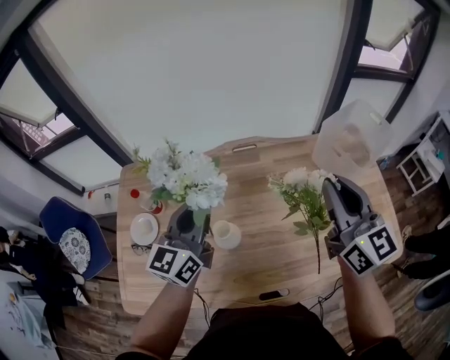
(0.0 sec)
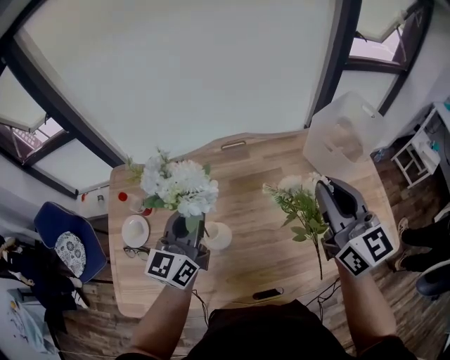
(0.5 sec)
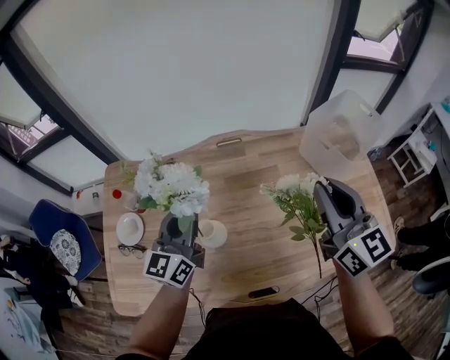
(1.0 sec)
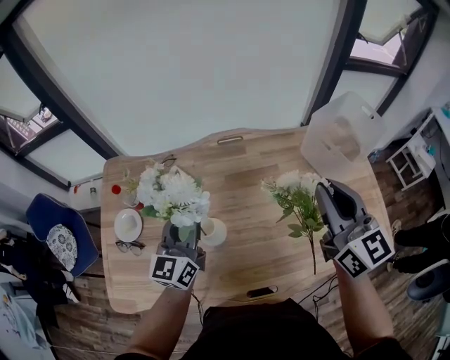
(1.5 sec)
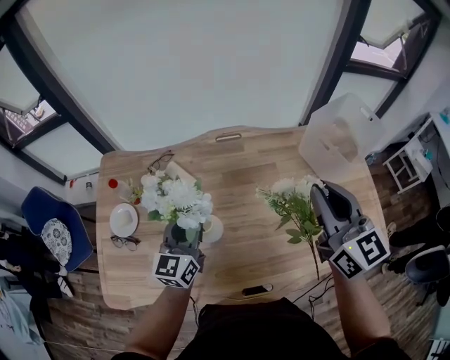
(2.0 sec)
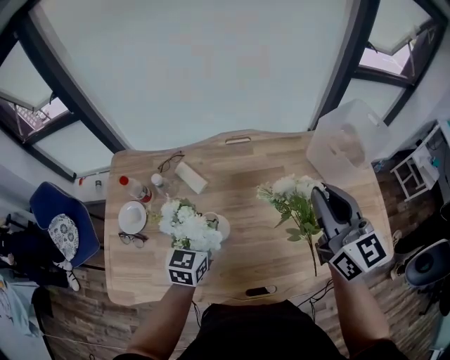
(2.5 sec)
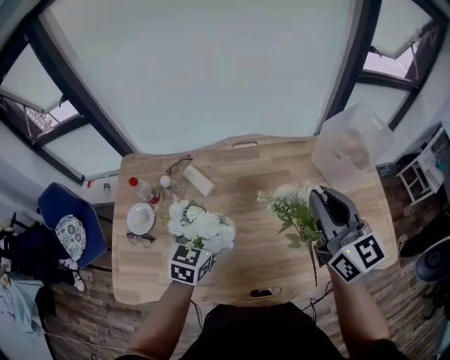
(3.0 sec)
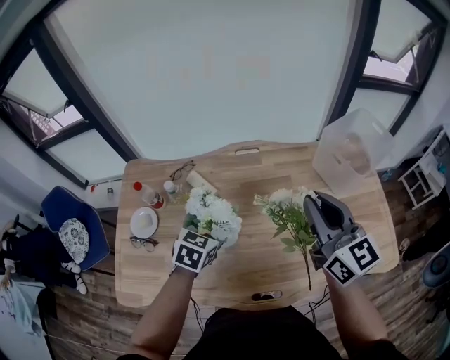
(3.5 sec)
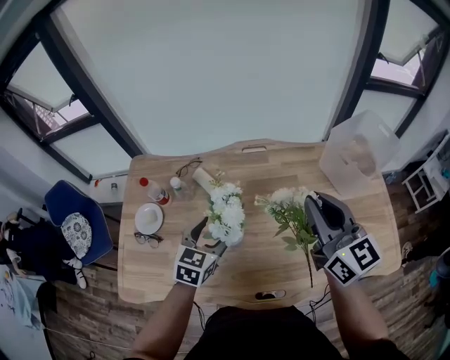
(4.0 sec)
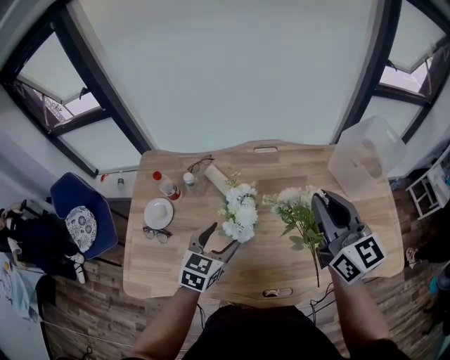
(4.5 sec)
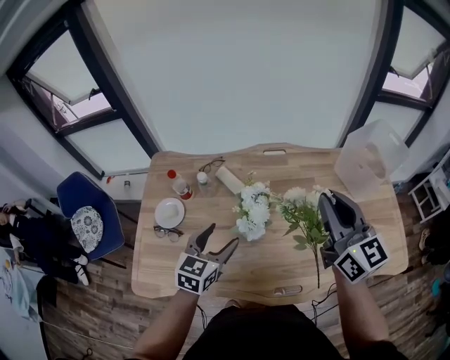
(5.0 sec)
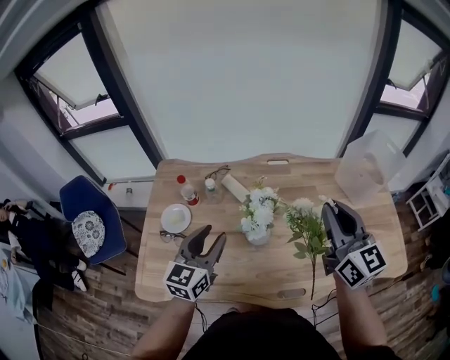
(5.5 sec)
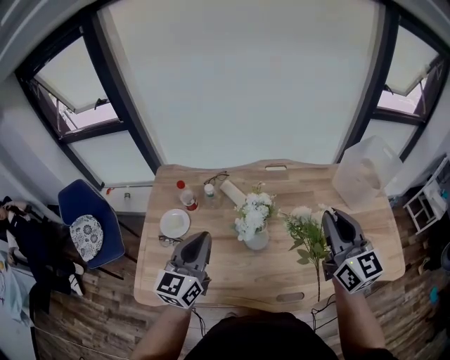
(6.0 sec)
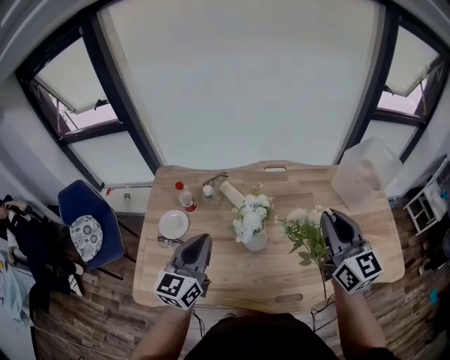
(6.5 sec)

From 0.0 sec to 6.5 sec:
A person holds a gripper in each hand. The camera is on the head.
From 0.0 sec to 2.0 sec: The left gripper goes approximately 10 cm downward.
From 2.0 sec to 4.5 sec: The right gripper goes about 5 cm to the left. Meanwhile the left gripper travels backward by roughly 5 cm, changes its angle by roughly 30 degrees, and opens.
From 4.5 sec to 6.5 sec: The right gripper shifts by roughly 5 cm. Meanwhile the left gripper shifts some 15 cm upward and to the left, changes its angle by about 30 degrees, and closes.

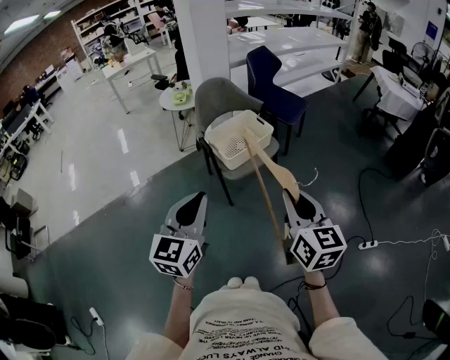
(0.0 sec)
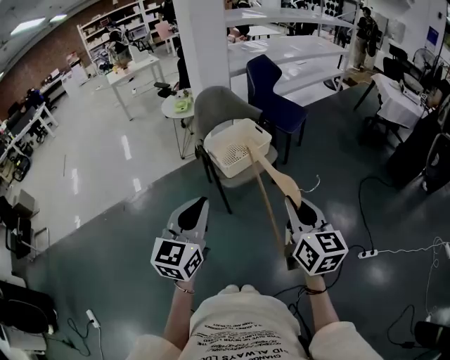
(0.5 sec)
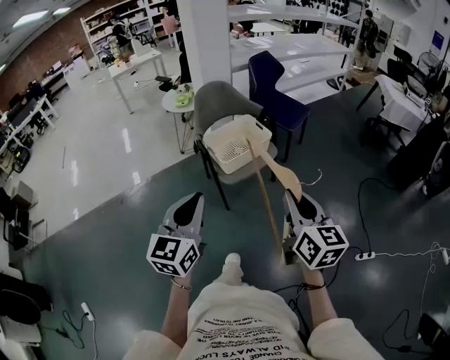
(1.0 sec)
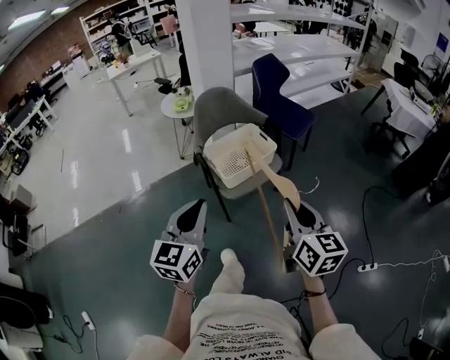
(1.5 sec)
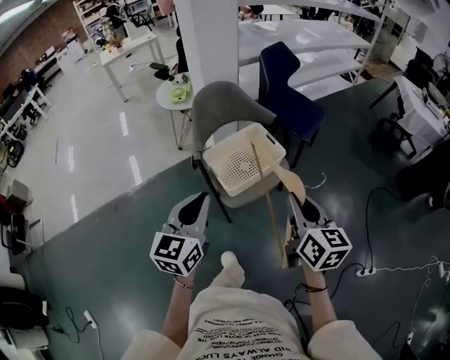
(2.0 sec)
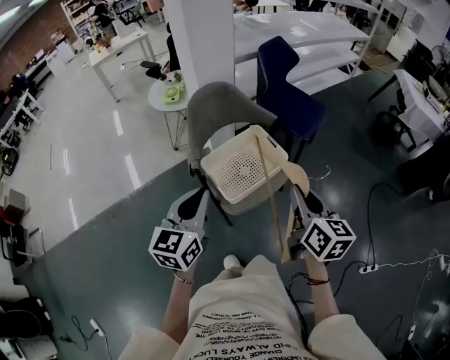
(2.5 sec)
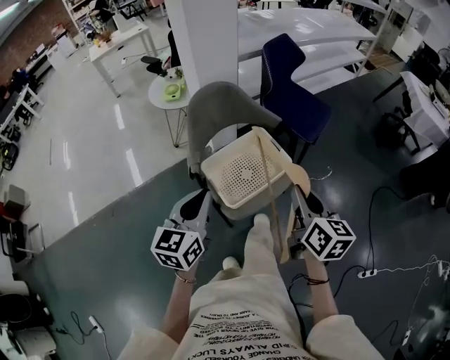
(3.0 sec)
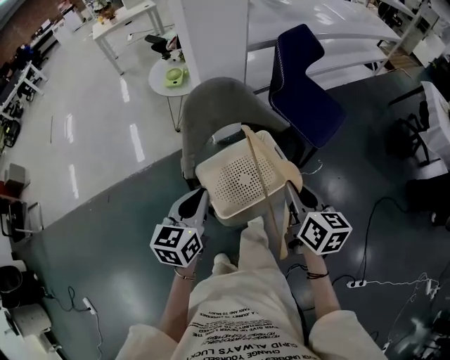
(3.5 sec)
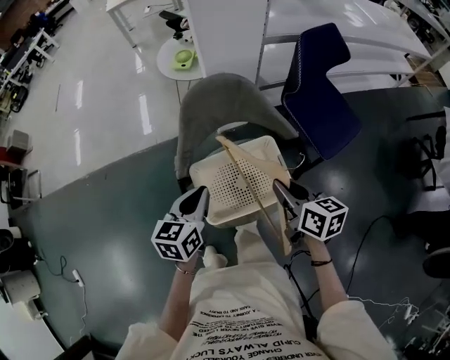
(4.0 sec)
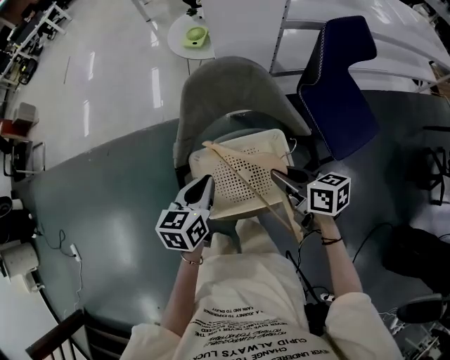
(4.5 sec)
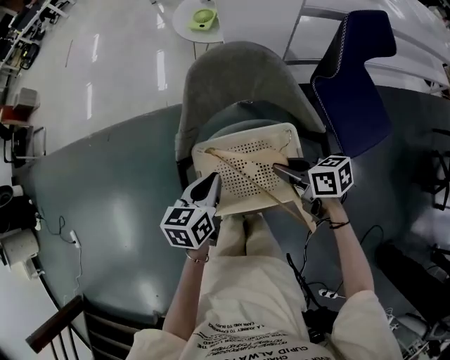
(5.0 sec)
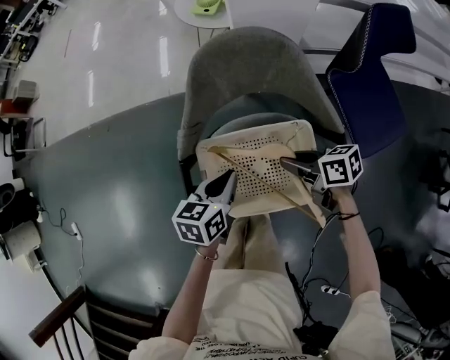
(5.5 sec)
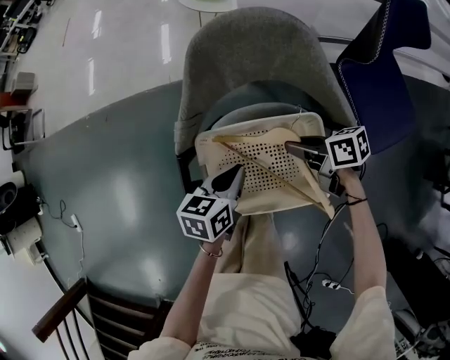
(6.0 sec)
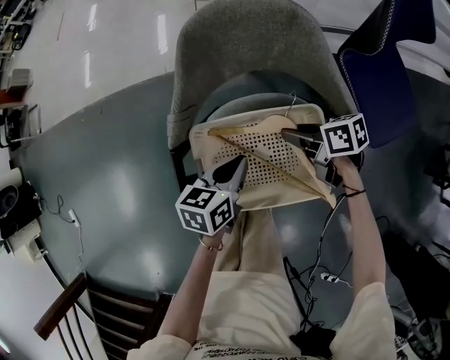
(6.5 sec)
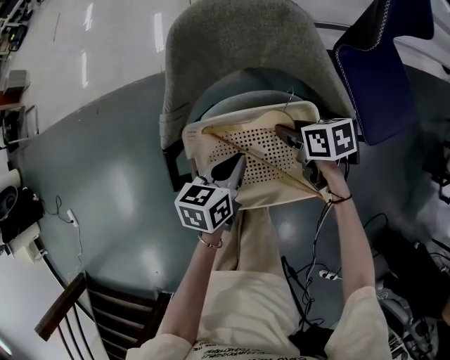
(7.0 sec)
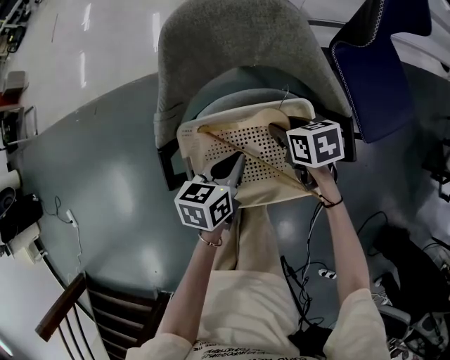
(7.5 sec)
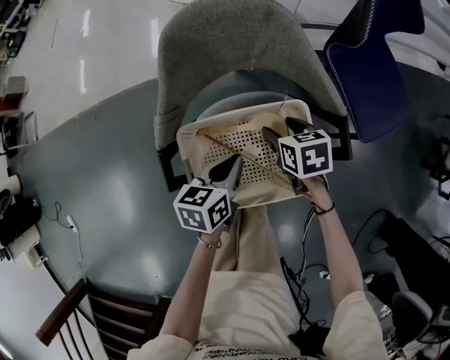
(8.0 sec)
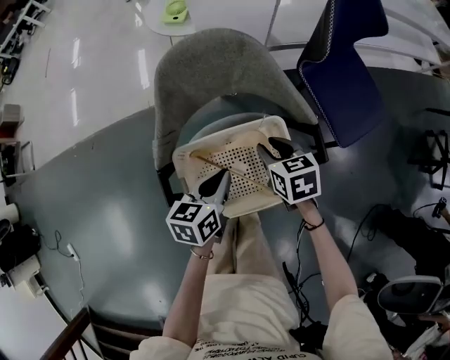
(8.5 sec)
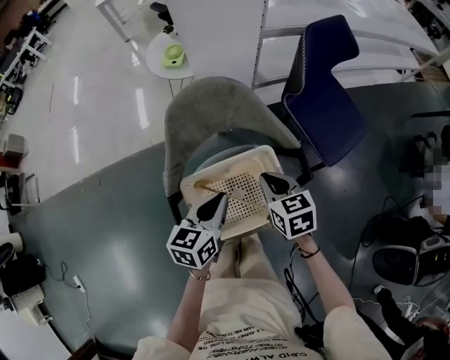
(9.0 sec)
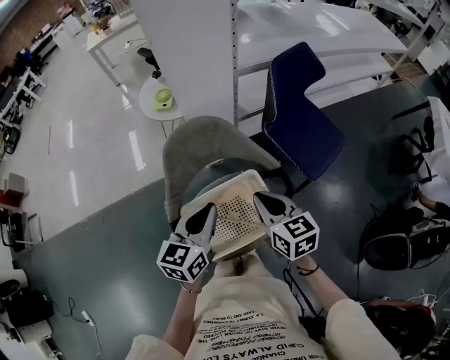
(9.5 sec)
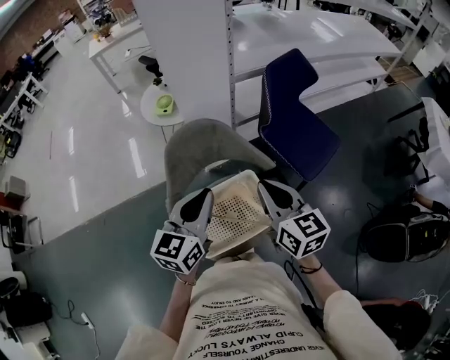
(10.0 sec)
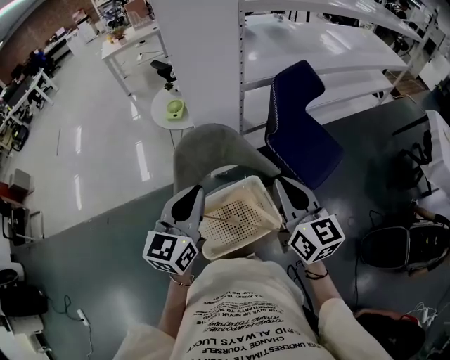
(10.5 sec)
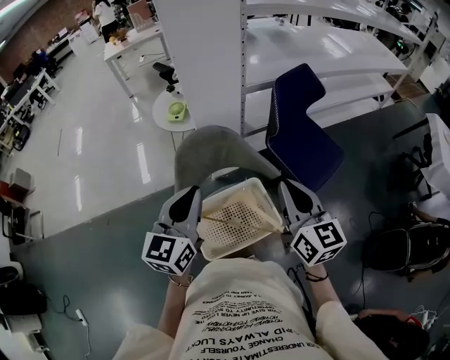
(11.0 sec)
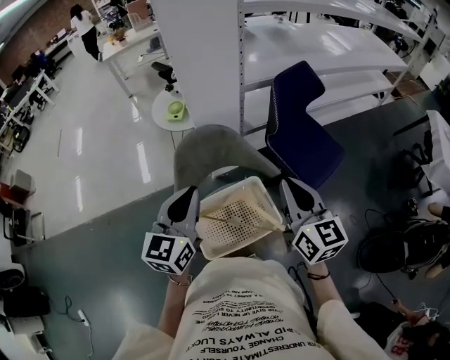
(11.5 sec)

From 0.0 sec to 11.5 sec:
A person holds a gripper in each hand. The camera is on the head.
From 0.0 sec to 2.0 sec: The two grippers go about 25 cm forward.
From 2.0 sec to 4.0 sec: The right gripper shifts by roughly 35 cm, and turns by roughly 40 degrees; the left gripper ends up some 30 cm from where it was, and changes its angle by approximately 30 degrees.
From 4.0 sec to 6.0 sec: The right gripper travels downward and forward by approximately 25 cm, and changes its angle by approximately 50 degrees; the left gripper shifts about 20 cm downward.
From 6.0 sec to 7.5 sec: The right gripper moves some 5 cm, rotates about 30 degrees, and opens.
From 7.5 sec to 9.5 sec: Both grippers travel together upward, some 25 cm. The right gripper rotates some 40 degrees, and closes its fingers. The left gripper swivels some 30 degrees.
From 9.5 sec to 11.5 sec: The left gripper moves upward, some 10 cm. The right gripper travels upward and to the right by approximately 15 cm, and rotates approximately 20 degrees.

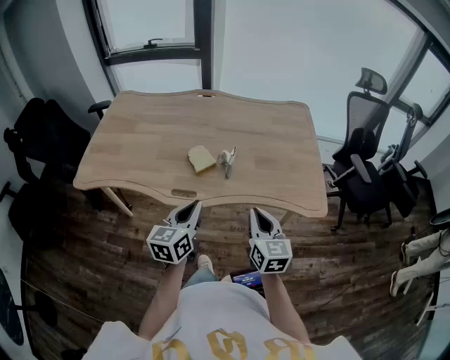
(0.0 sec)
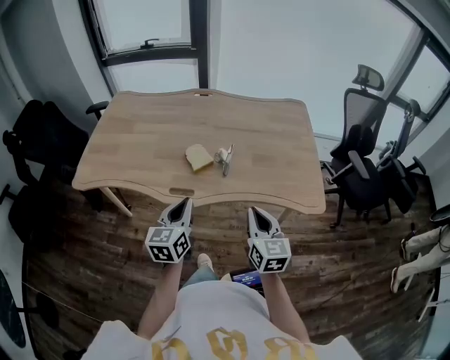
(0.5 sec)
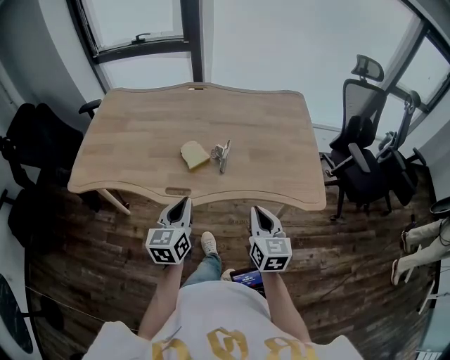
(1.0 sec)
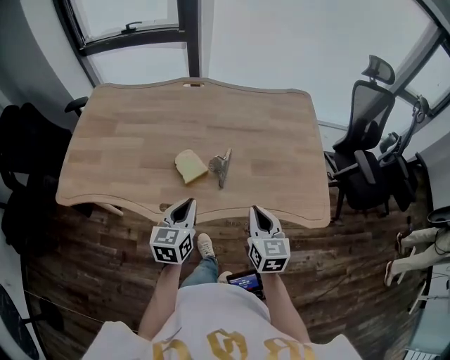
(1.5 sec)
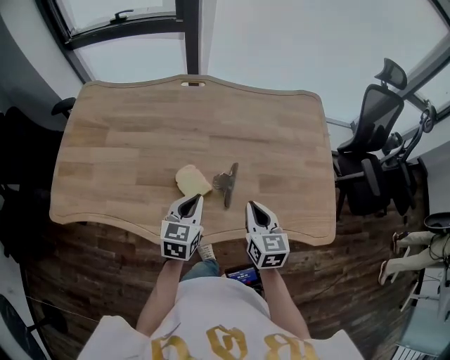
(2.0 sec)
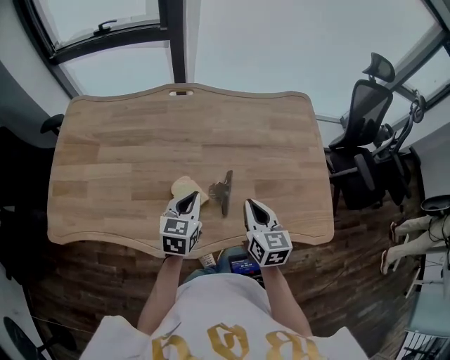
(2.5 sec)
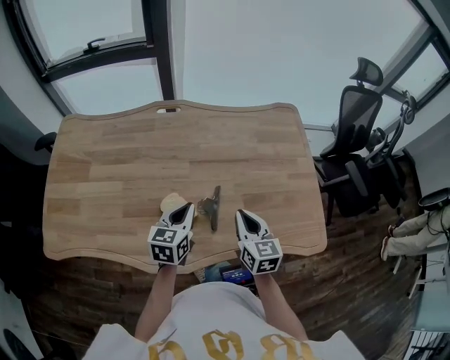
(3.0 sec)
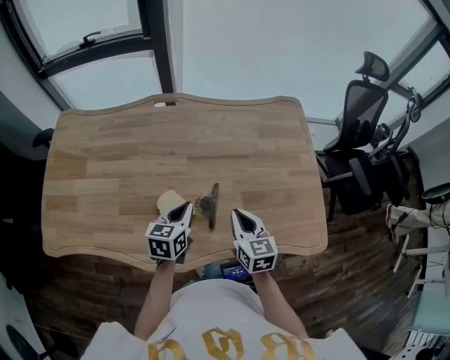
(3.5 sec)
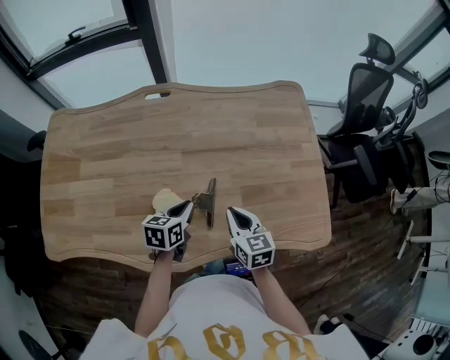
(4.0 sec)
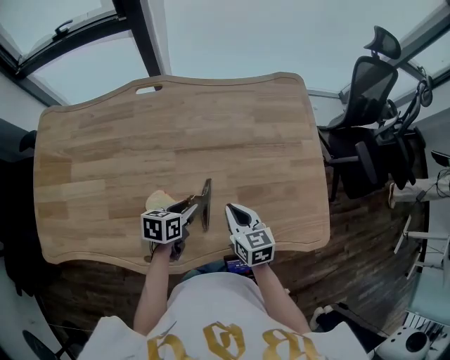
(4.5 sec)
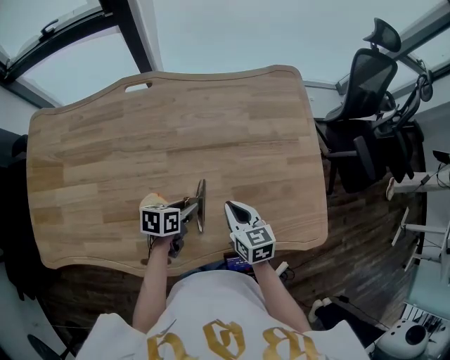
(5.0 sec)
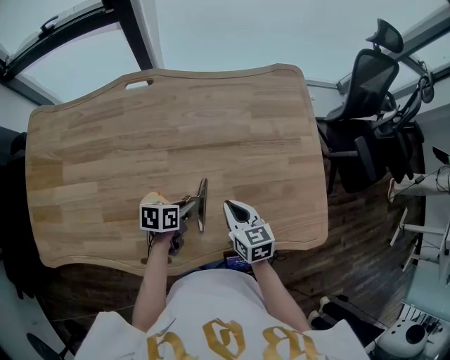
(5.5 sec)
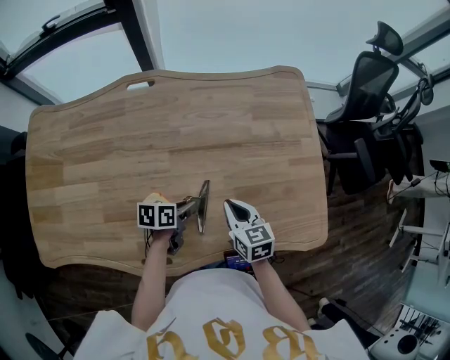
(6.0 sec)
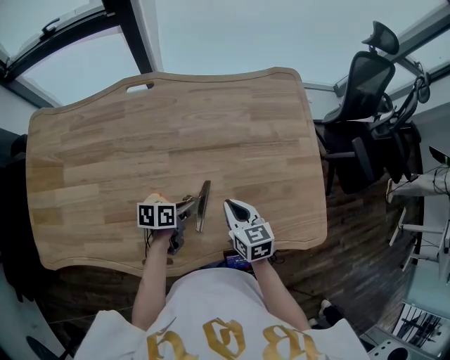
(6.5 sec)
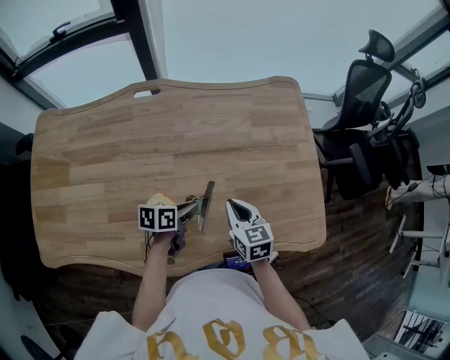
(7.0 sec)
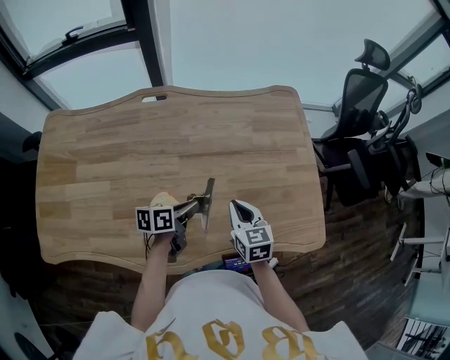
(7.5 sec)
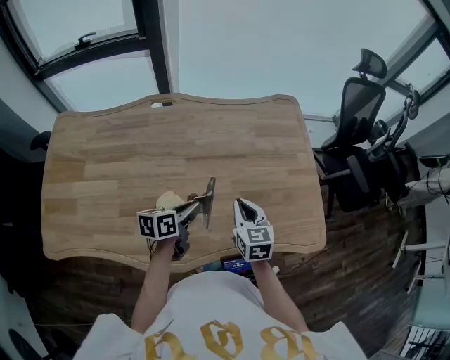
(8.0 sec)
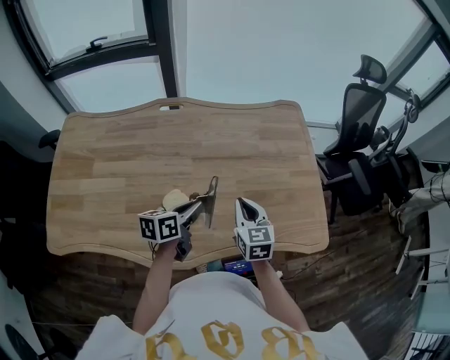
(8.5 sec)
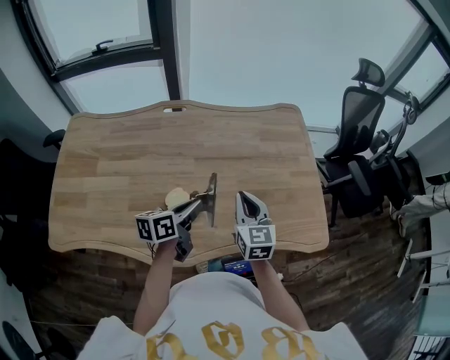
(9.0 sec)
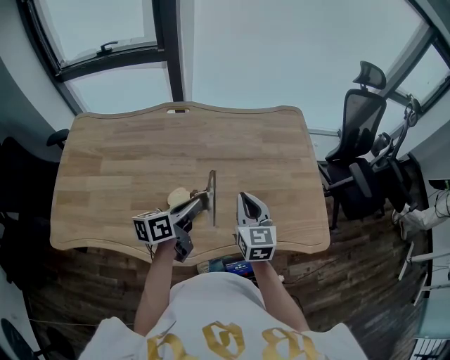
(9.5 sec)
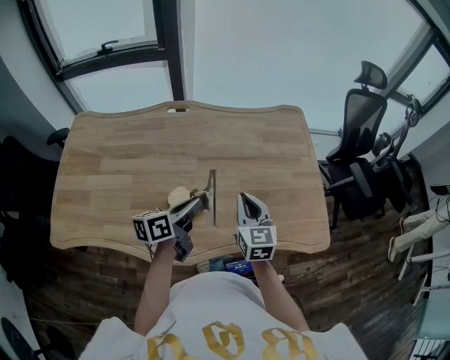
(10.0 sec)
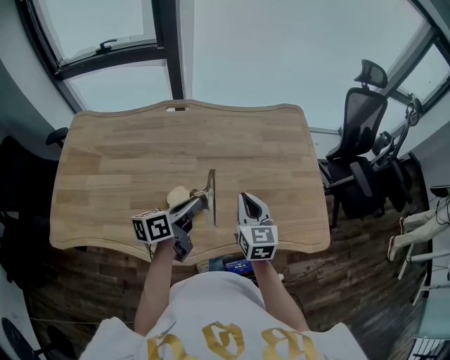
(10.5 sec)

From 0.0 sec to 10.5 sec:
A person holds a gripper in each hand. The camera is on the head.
From 0.0 sec to 2.0 sec: The grippers both shift forward by roughly 25 cm.
From 2.0 sec to 4.0 sec: The two grippers go roughly 10 cm forward and downward. The left gripper rotates some 30 degrees.
From 4.0 sec to 6.5 sec: The right gripper shifts by about 5 cm; the left gripper heads downward, covering some 5 cm, turns by approximately 30 degrees, and opens, then closes again.
From 6.5 sec to 8.5 sec: The right gripper travels upward by roughly 10 cm; the left gripper is displaced upward by some 15 cm, and rotates about 30 degrees.
From 8.5 sec to 10.5 sec: The grippers stay close to where they were, moving slightly.
